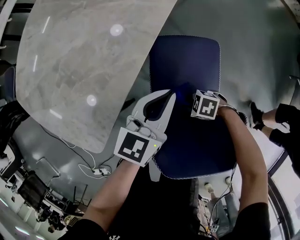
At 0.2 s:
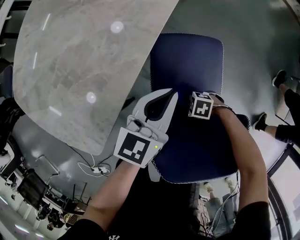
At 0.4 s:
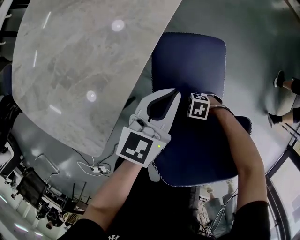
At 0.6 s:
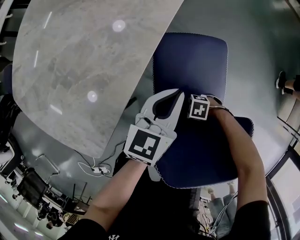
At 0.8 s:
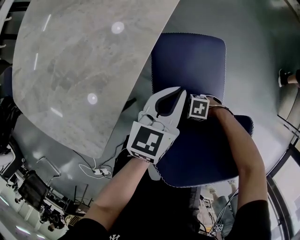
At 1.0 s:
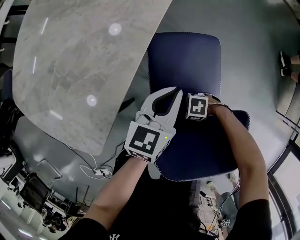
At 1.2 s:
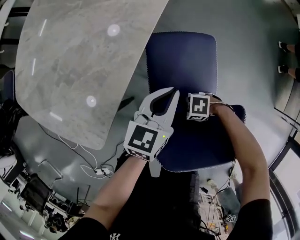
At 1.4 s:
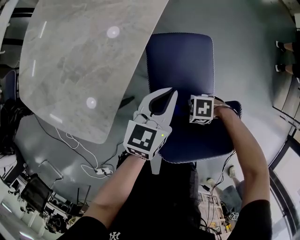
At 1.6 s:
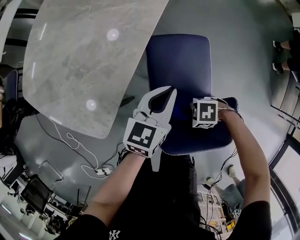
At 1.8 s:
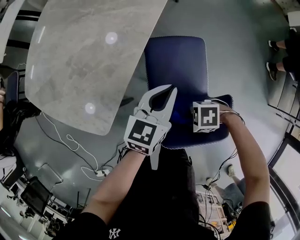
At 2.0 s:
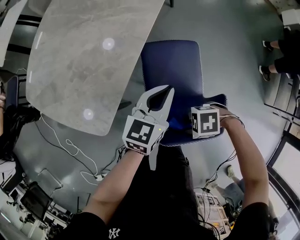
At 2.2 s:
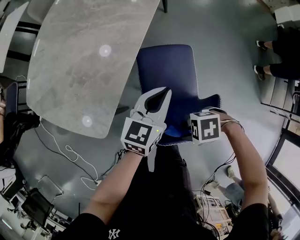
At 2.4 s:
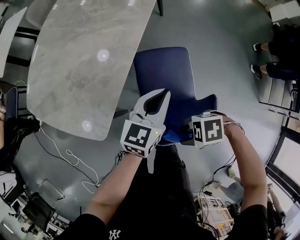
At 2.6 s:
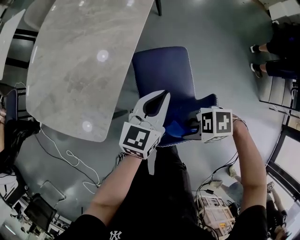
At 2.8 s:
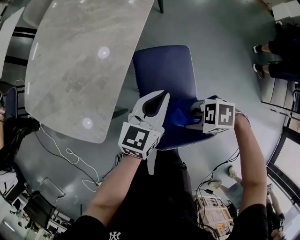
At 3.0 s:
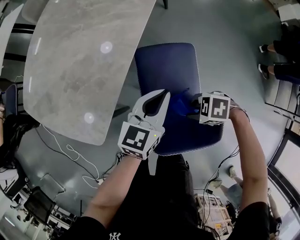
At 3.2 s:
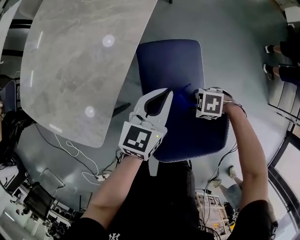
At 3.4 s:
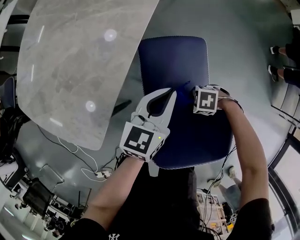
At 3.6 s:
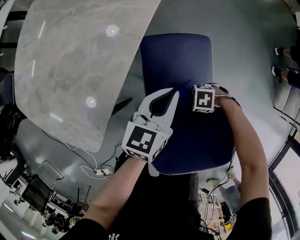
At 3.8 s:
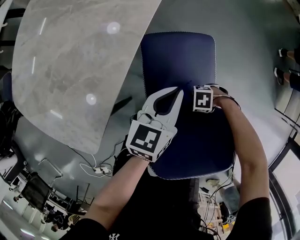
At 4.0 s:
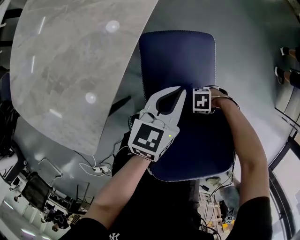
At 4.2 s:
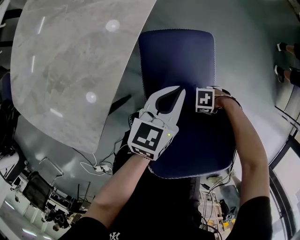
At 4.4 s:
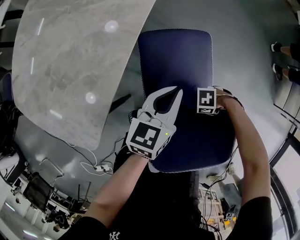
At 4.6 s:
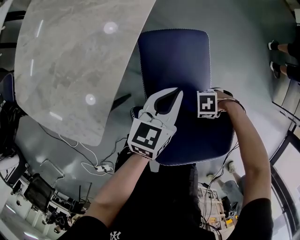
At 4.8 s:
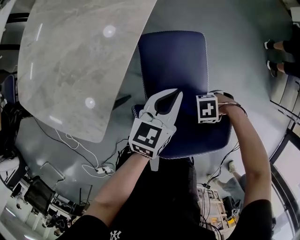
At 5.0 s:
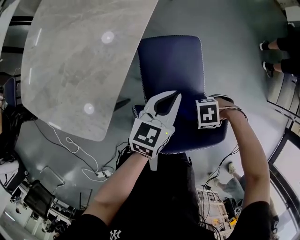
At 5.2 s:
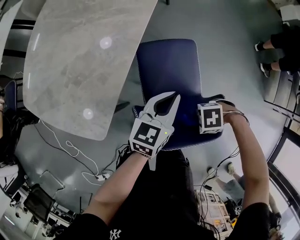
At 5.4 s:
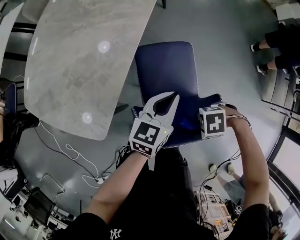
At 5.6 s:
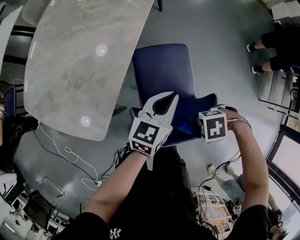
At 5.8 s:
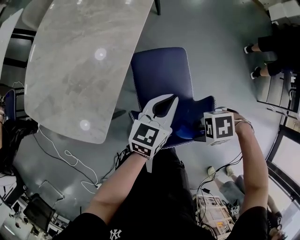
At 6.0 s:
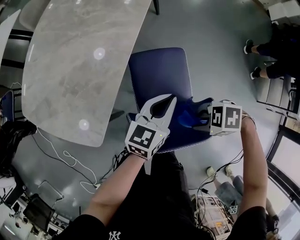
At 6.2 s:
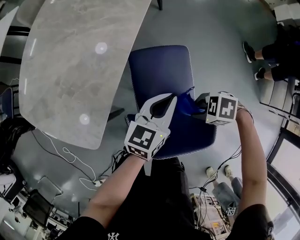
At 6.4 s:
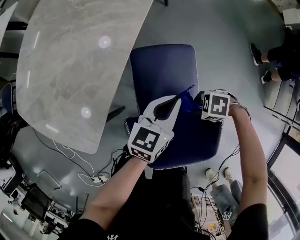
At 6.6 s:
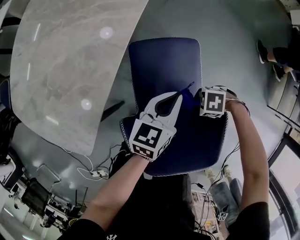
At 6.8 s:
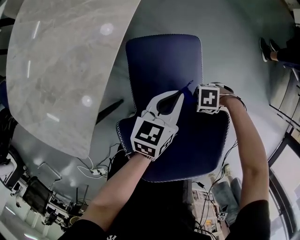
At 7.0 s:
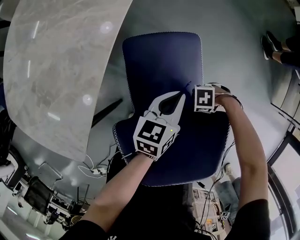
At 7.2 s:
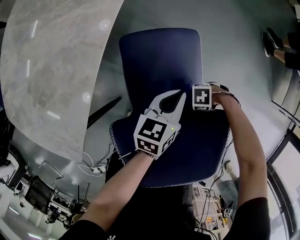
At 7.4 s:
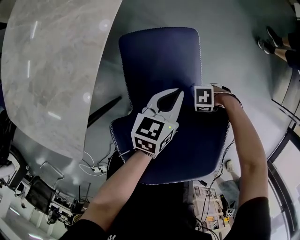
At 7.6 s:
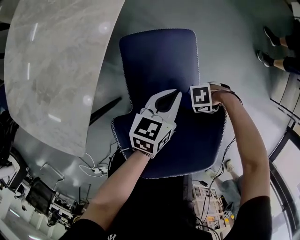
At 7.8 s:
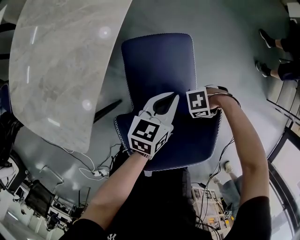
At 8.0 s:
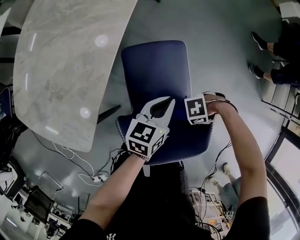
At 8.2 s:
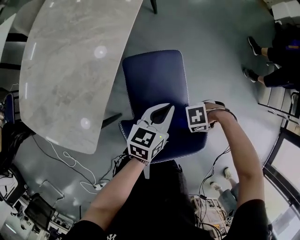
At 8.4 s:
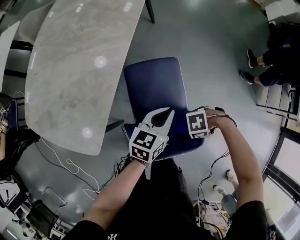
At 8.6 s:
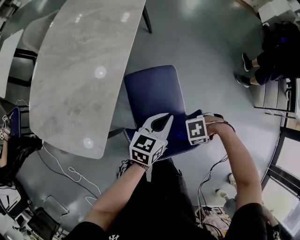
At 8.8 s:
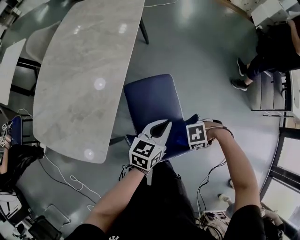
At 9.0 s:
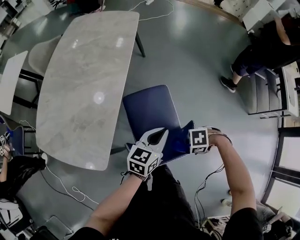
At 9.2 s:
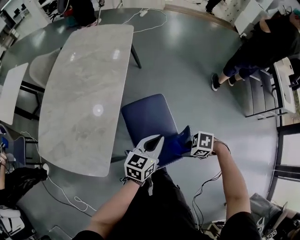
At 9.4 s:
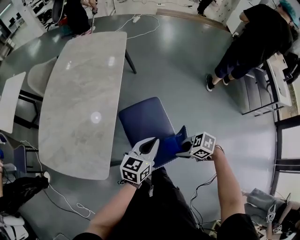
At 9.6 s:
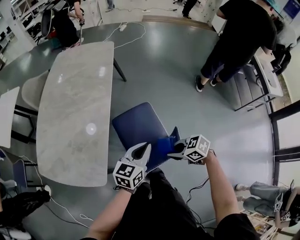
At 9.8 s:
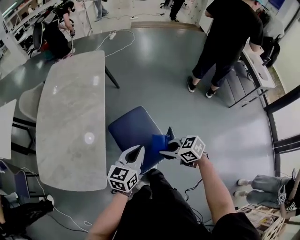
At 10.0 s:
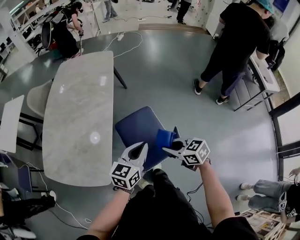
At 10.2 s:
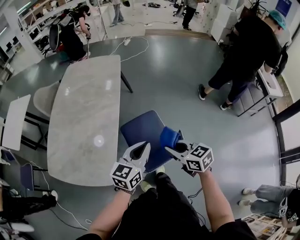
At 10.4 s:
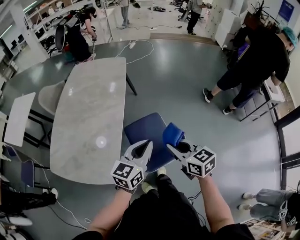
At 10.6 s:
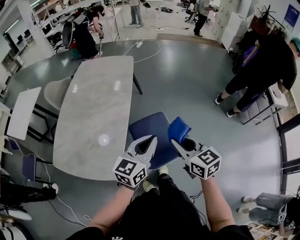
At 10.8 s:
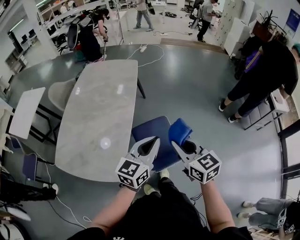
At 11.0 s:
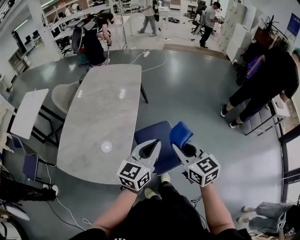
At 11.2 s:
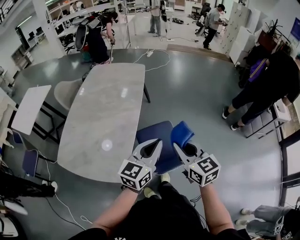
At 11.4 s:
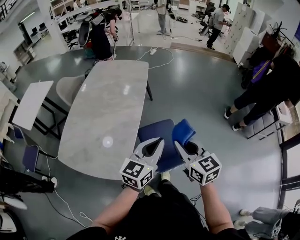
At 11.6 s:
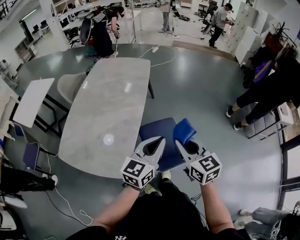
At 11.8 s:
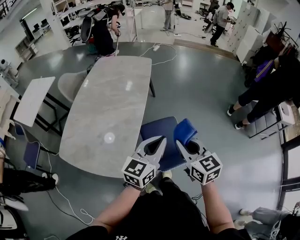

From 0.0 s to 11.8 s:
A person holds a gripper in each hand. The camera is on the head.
From 0.0 s to 1.4 s: The right gripper moves roughly 10 cm.
From 1.4 s to 3.0 s: The left gripper goes roughly 5 cm upward, while the right gripper is displaced upward by approximately 15 cm.
From 3.0 s to 4.4 s: The right gripper heads downward, covering roughly 20 cm, and swivels about 20 degrees. The left gripper is displaced downward by approximately 10 cm.
From 4.4 s to 6.0 s: The right gripper shifts roughly 30 cm upward, and swivels roughly 20 degrees. The left gripper moves upward, some 15 cm.
From 6.0 s to 7.4 s: The right gripper heads downward, covering about 35 cm, and rotates some 20 degrees; the left gripper travels downward by roughly 20 cm.
From 7.4 s to 8.8 s: Both grippers move upward, about 25 cm.
From 8.8 s to 10.4 s: The grippers both shift upward by some 25 cm. The right gripper tilts its fingers roughly 30 degrees upward.
From 10.4 s to 11.8 s: The right gripper moves upward and to the left, approximately 10 cm. The left gripper moves roughly 5 cm.

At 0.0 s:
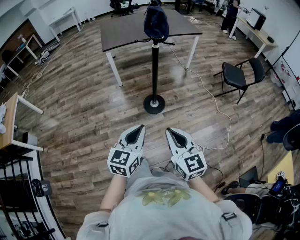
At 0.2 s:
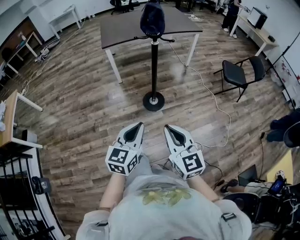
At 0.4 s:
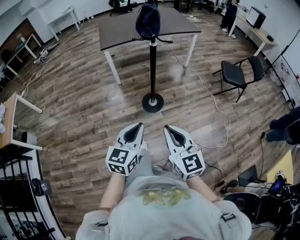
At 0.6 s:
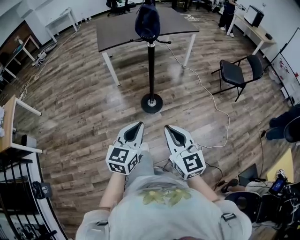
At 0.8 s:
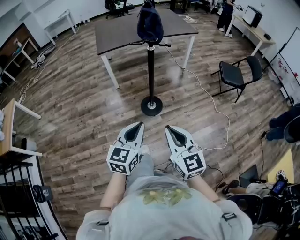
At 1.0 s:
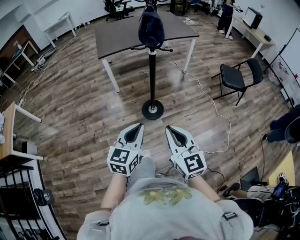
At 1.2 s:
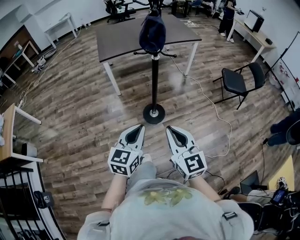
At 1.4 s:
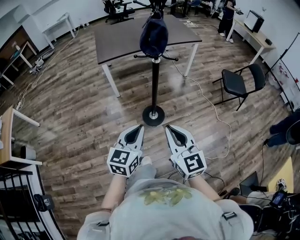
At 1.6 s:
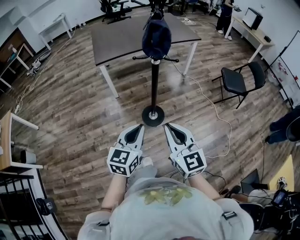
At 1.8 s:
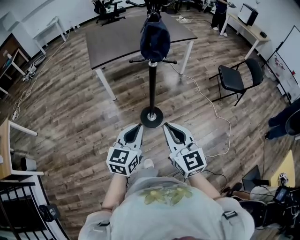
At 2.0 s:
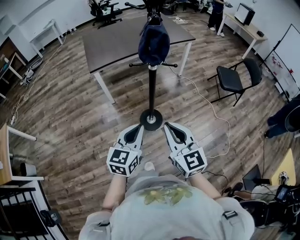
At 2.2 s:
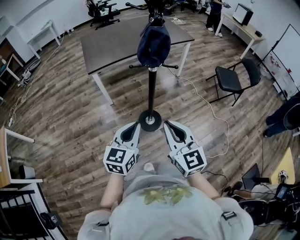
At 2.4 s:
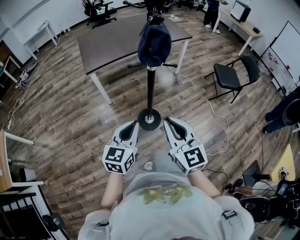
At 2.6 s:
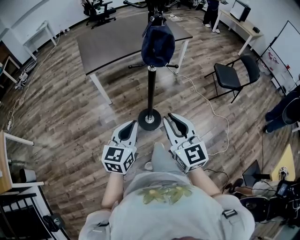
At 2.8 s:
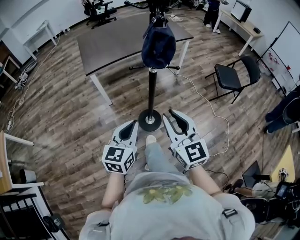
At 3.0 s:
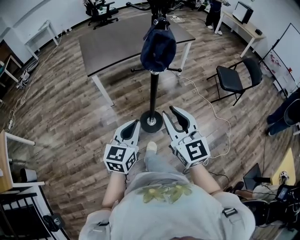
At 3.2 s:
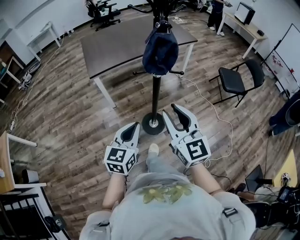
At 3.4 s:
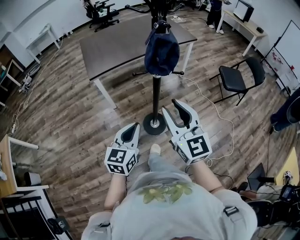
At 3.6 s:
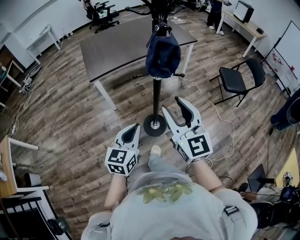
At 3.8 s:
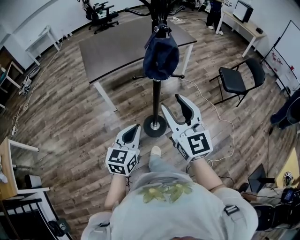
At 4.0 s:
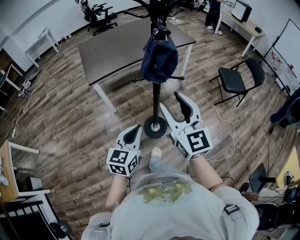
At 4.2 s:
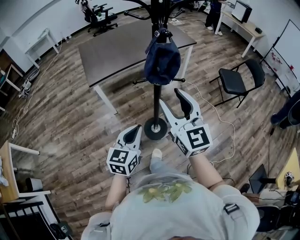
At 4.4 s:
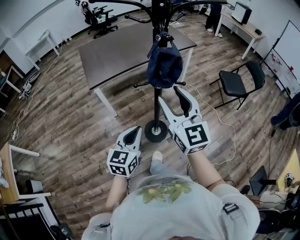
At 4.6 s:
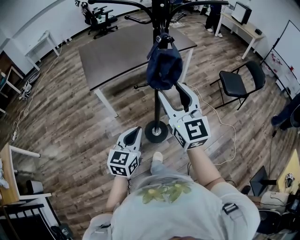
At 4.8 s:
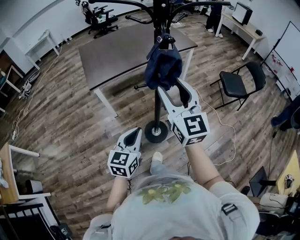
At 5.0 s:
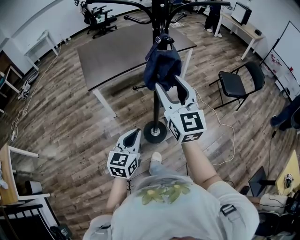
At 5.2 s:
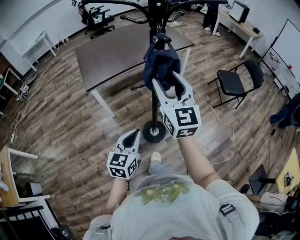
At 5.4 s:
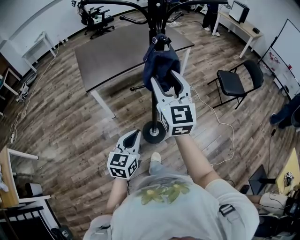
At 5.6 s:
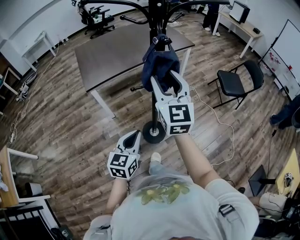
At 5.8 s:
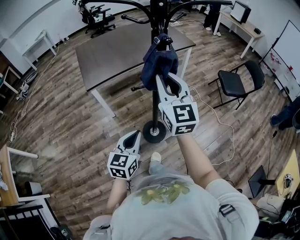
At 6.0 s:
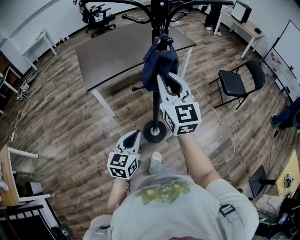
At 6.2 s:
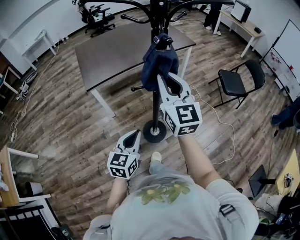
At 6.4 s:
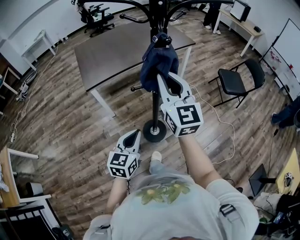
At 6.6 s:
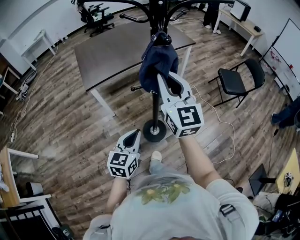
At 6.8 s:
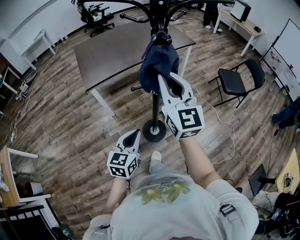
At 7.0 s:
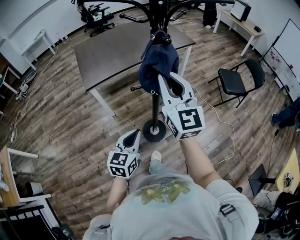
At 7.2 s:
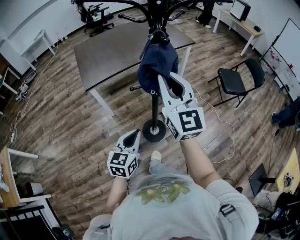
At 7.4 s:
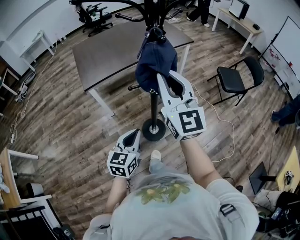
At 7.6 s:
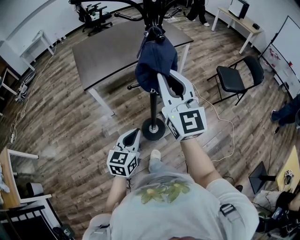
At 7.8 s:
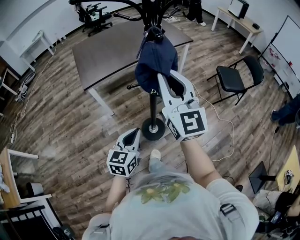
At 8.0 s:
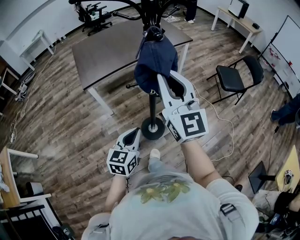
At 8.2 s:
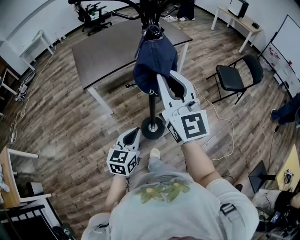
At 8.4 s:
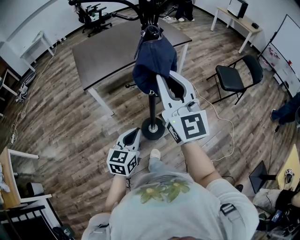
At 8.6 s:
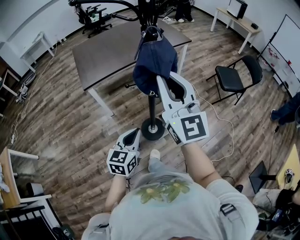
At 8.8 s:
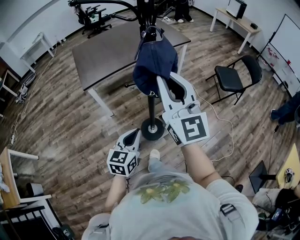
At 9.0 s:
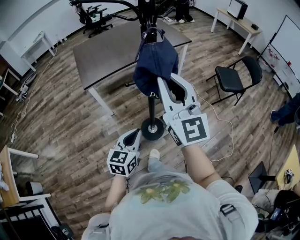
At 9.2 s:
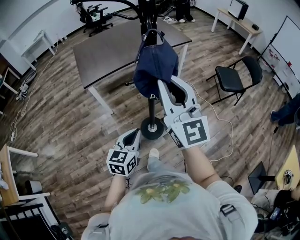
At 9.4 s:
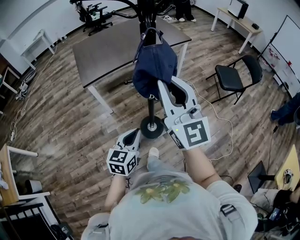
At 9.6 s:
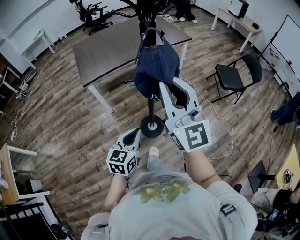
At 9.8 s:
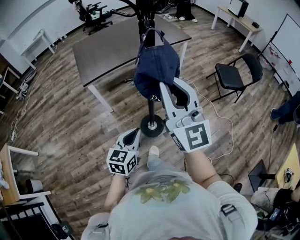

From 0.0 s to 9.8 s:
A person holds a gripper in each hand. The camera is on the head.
From 0.0 s to 1.4 s: Both grippers travel together forward, about 15 cm.
From 1.4 s to 2.8 s: The left gripper travels forward and to the left by approximately 15 cm. Meanwhile the right gripper is displaced forward by approximately 15 cm.
From 2.8 s to 4.2 s: The right gripper shifts roughly 15 cm forward and upward, and opens. Meanwhile the left gripper heads forward, covering approximately 5 cm.
From 4.2 s to 5.6 s: The right gripper heads forward, covering about 10 cm.
From 5.6 s to 7.0 s: The right gripper closes its fingers.
From 7.0 s to 8.4 s: The right gripper ends up approximately 5 cm from where it was.
From 8.4 s to 9.8 s: The right gripper changes place by roughly 5 cm.

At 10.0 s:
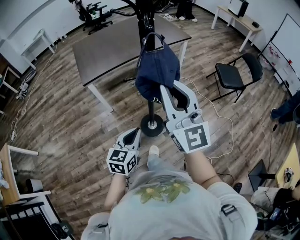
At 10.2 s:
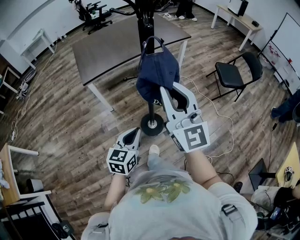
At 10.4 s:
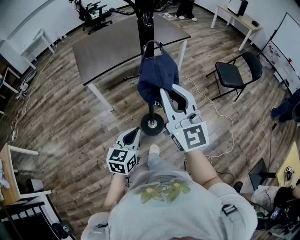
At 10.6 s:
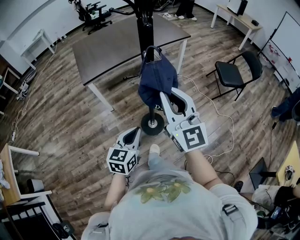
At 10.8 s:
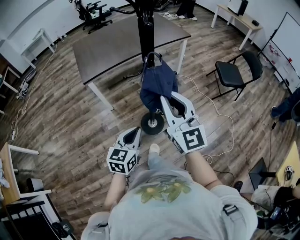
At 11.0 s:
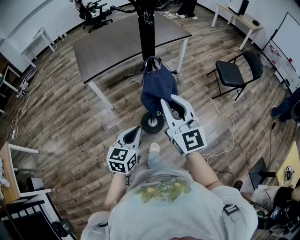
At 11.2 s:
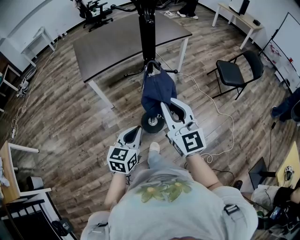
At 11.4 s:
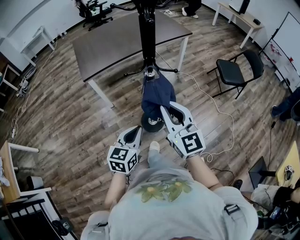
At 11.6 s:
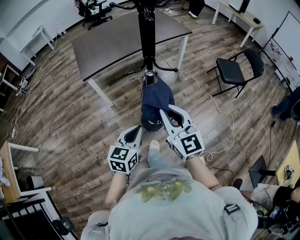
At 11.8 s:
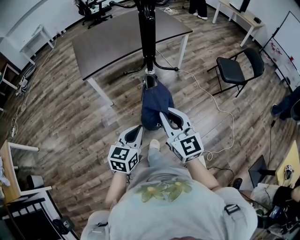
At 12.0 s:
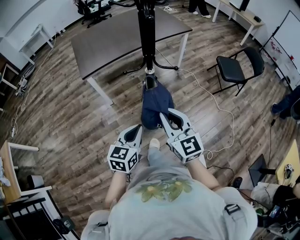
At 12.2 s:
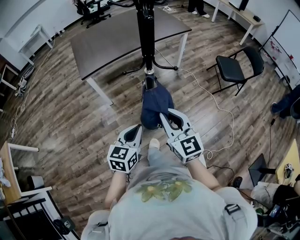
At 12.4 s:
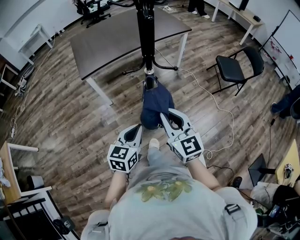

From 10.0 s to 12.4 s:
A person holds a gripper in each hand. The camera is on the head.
From 10.0 s to 11.2 s: The right gripper heads downward, covering some 10 cm.
From 11.2 s to 12.4 s: The right gripper goes approximately 10 cm downward.
